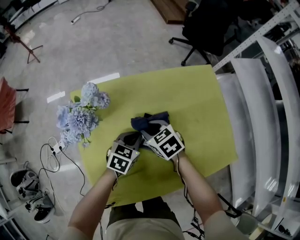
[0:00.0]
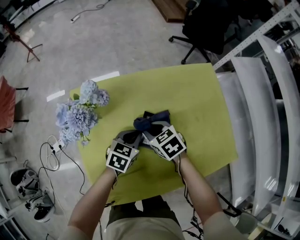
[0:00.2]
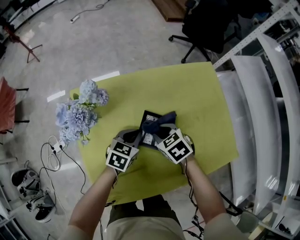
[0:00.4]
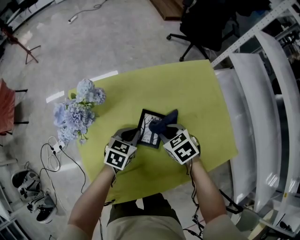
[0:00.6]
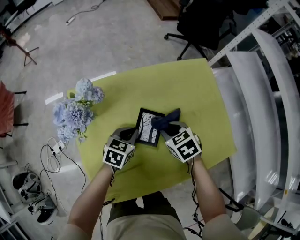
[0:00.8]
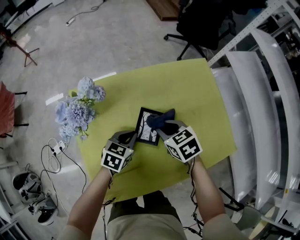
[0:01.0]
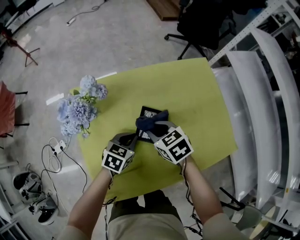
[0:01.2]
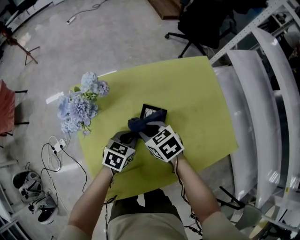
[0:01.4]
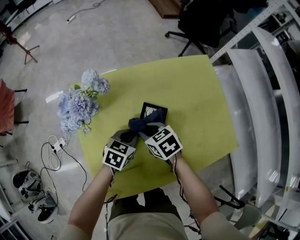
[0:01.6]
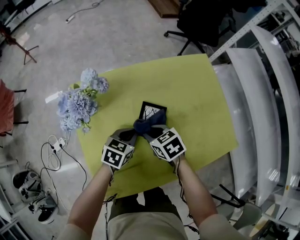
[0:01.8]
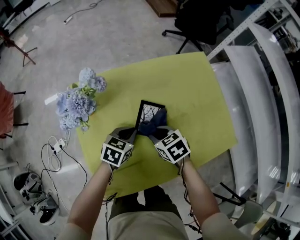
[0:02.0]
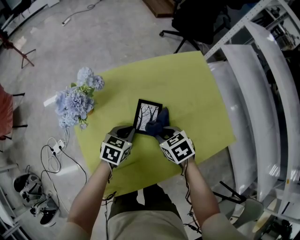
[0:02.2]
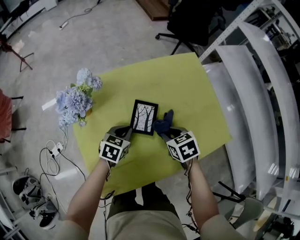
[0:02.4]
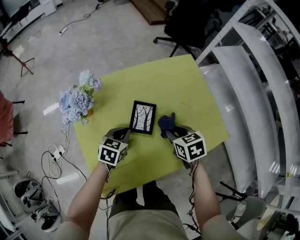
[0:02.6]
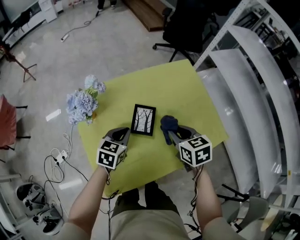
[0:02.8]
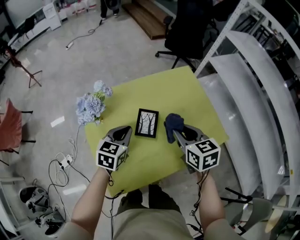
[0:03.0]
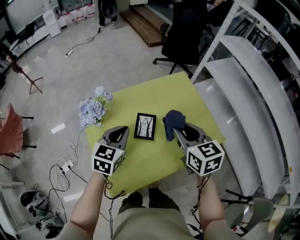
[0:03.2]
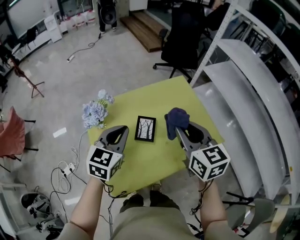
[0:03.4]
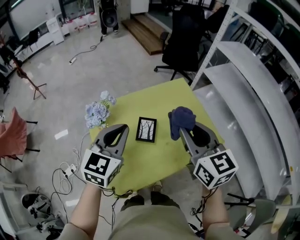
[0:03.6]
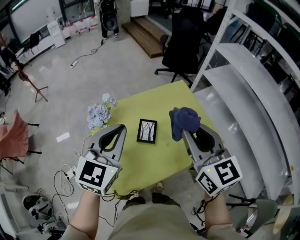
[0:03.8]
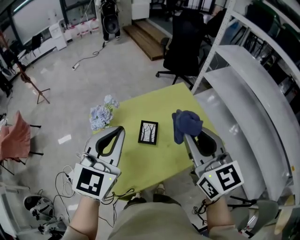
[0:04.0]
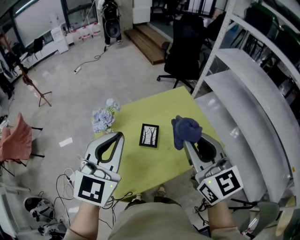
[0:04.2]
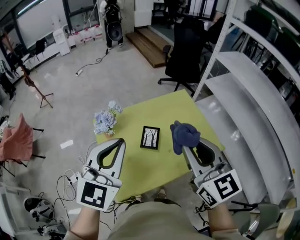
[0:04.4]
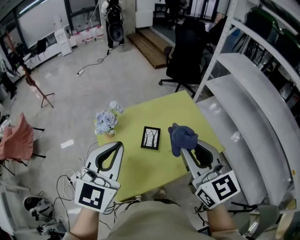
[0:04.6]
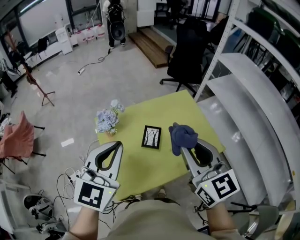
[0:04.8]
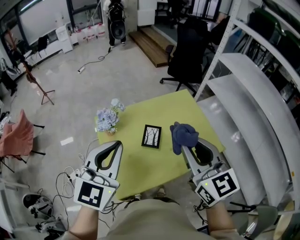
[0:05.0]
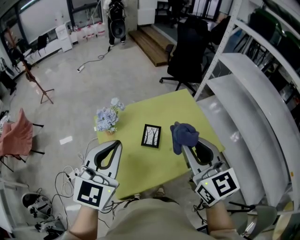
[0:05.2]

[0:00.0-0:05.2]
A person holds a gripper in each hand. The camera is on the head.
0:00.0 to 0:01.8: The right gripper is displaced backward by roughly 5 cm, and reaches approximately 10 cm to the right, then returns.
0:01.8 to 0:03.4: Both grippers travel together upward, about 30 cm. The left gripper rotates approximately 30 degrees, while the right gripper tips its fingers upward by roughly 30 degrees.
0:03.4 to 0:05.2: Both grippers travel together upward and backward, some 15 cm.

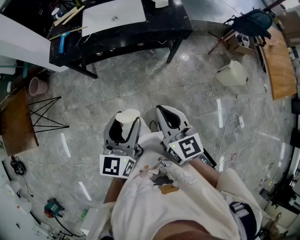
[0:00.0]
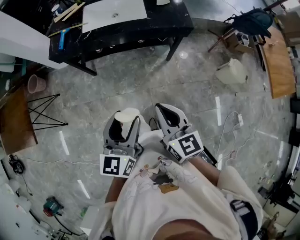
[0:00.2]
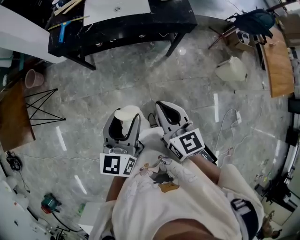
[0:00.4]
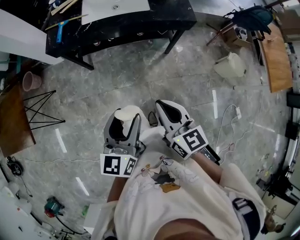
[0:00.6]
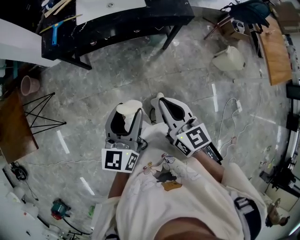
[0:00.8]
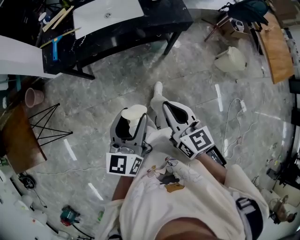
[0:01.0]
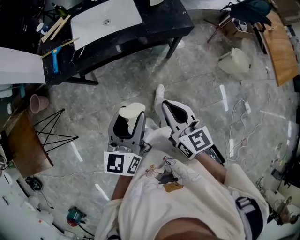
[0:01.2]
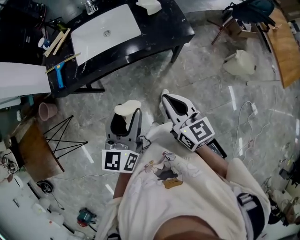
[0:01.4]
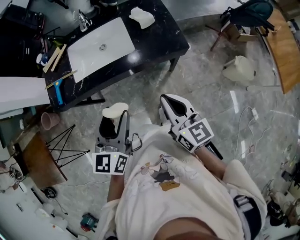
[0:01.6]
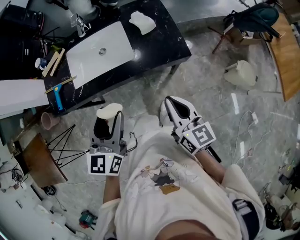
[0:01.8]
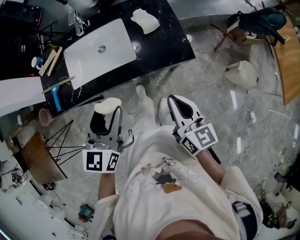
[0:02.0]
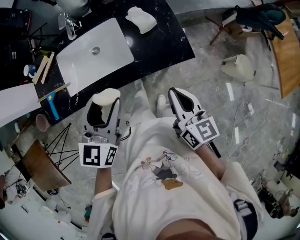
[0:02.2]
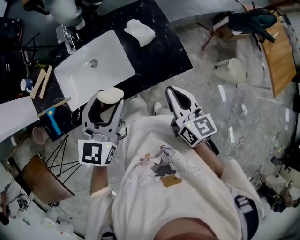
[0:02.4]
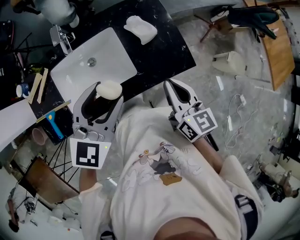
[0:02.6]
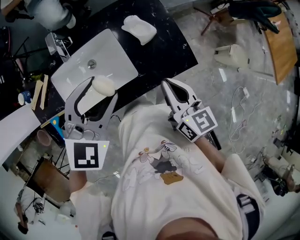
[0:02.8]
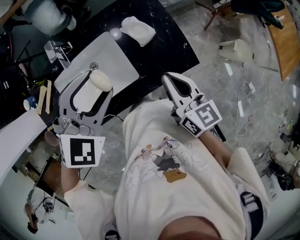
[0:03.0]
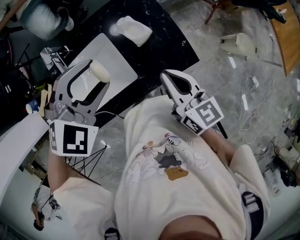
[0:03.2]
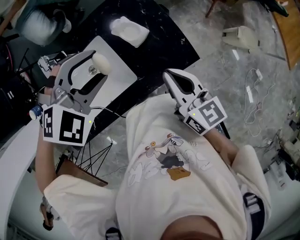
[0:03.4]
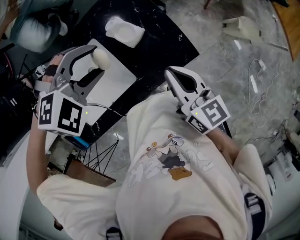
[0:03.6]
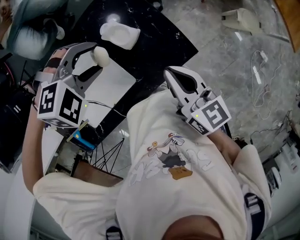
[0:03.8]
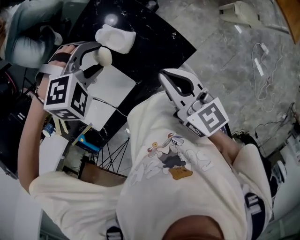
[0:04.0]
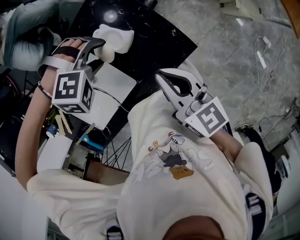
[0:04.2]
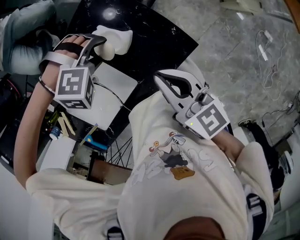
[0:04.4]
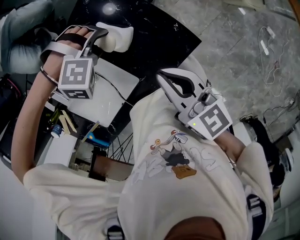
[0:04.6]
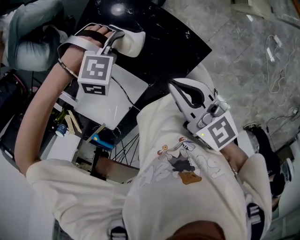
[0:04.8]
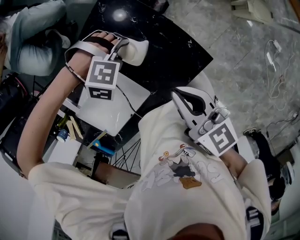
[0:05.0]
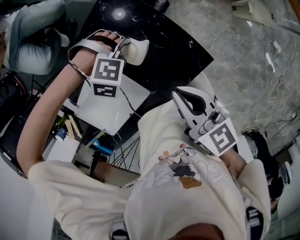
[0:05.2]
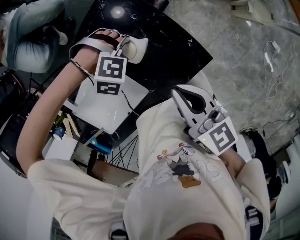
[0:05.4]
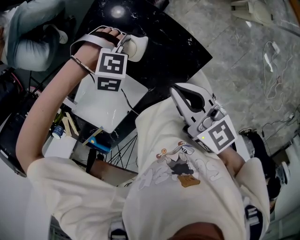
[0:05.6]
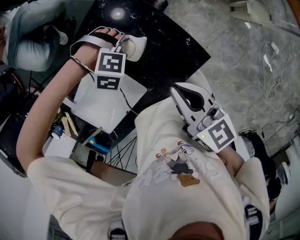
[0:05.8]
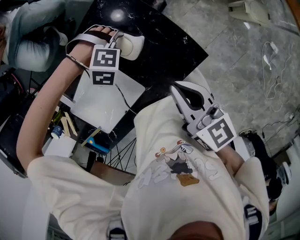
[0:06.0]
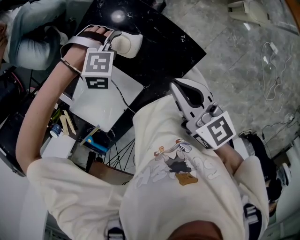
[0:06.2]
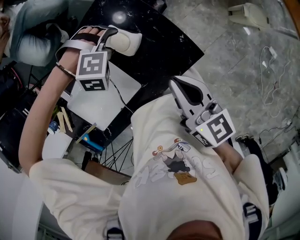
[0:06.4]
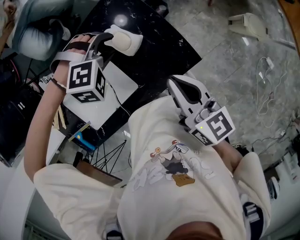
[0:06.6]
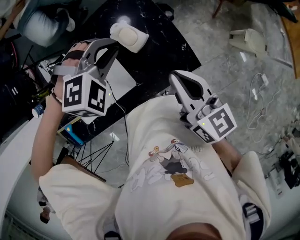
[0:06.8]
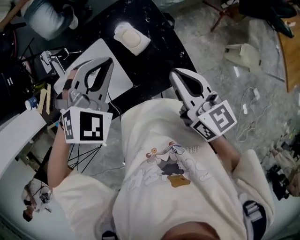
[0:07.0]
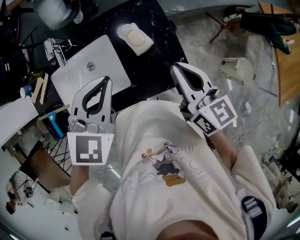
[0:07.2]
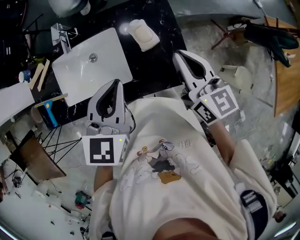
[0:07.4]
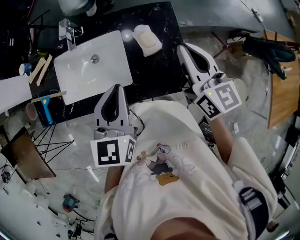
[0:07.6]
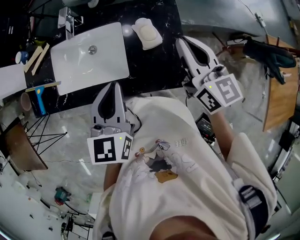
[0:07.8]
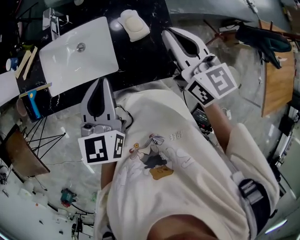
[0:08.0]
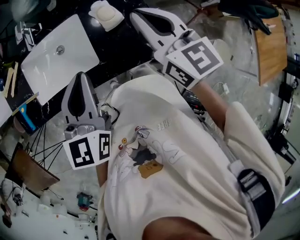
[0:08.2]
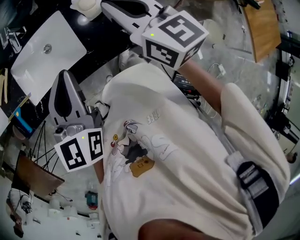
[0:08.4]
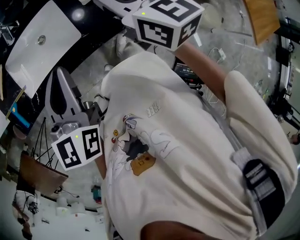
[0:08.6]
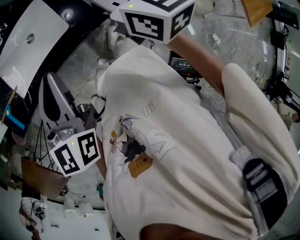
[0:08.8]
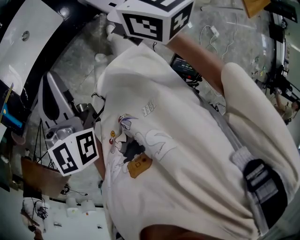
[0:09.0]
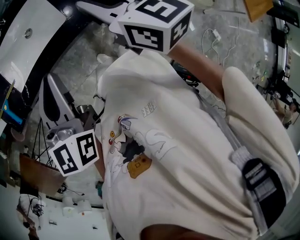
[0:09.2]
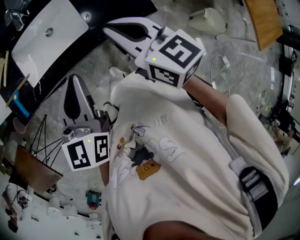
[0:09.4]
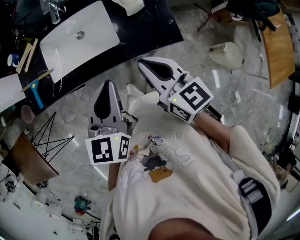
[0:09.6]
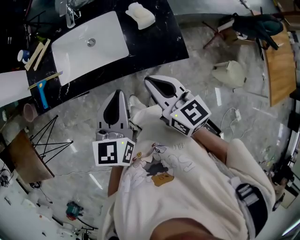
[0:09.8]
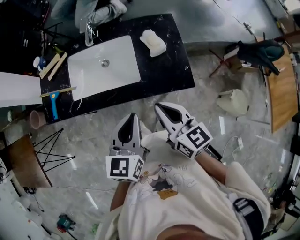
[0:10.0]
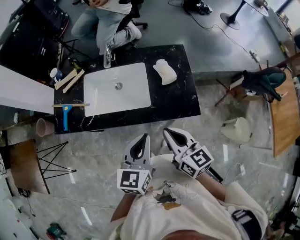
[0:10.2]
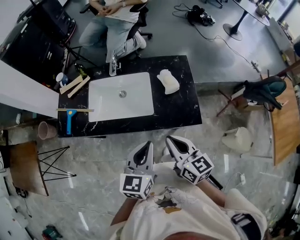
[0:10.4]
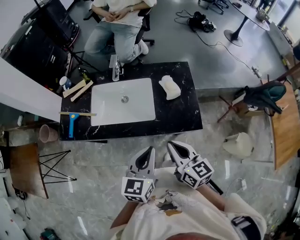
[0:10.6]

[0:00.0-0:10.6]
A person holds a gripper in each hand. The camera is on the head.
0:00.0 to 0:01.6: The grippers both shift forward by roughly 25 cm.
0:01.6 to 0:03.0: The grippers both shift forward by approximately 35 cm. The left gripper turns by roughly 60 degrees.
0:03.0 to 0:04.6: The left gripper shifts some 25 cm downward, and tilts its fingers approximately 50 degrees downward. Meanwhile the right gripper ends up some 10 cm from where it was.
0:04.6 to 0:06.0: The left gripper travels downward by roughly 5 cm.
0:06.0 to 0:07.6: The right gripper moves upward, roughly 10 cm, and turns by roughly 40 degrees, while the left gripper goes roughly 25 cm upward, rolls counterclockwise, seen from behind, by some 120 degrees, and closes its fingers.
0:07.6 to 0:09.0: Both grippers travel together backward, about 20 cm.
0:09.0 to 0:10.6: The right gripper moves to the left and backward, some 10 cm.

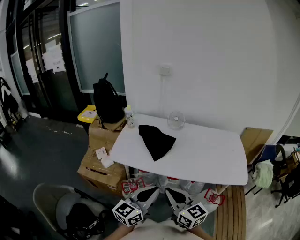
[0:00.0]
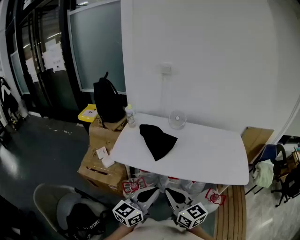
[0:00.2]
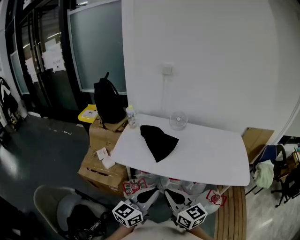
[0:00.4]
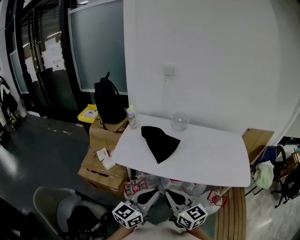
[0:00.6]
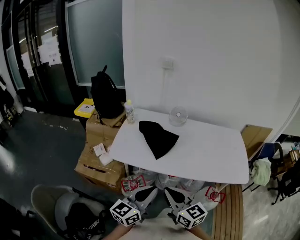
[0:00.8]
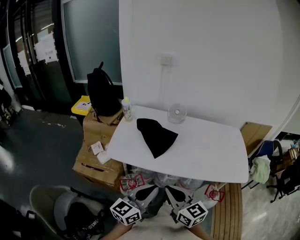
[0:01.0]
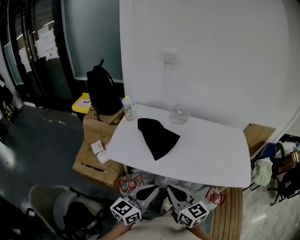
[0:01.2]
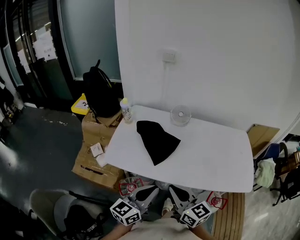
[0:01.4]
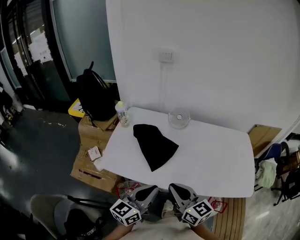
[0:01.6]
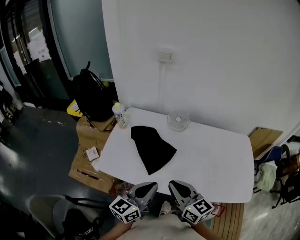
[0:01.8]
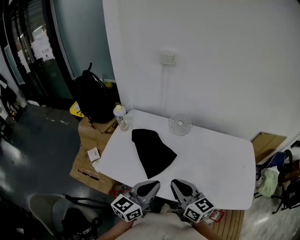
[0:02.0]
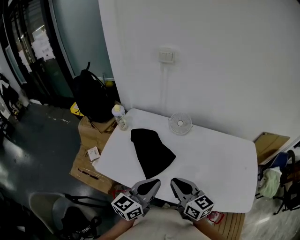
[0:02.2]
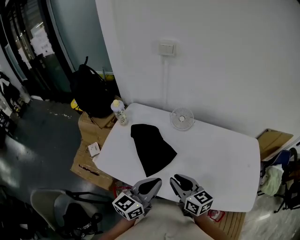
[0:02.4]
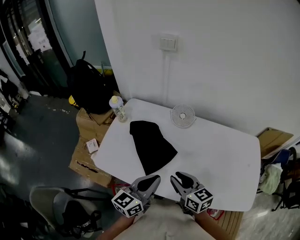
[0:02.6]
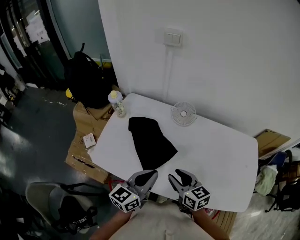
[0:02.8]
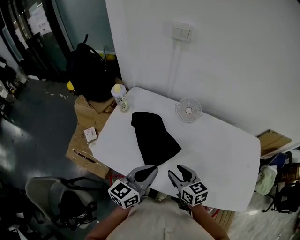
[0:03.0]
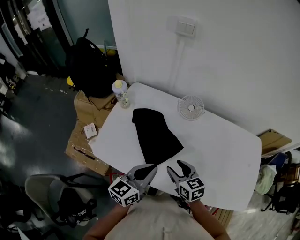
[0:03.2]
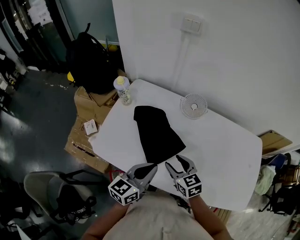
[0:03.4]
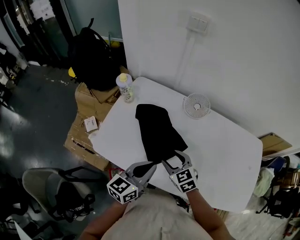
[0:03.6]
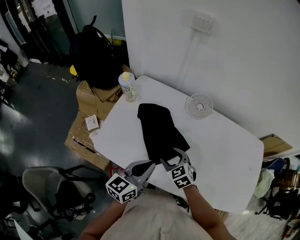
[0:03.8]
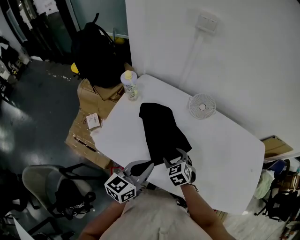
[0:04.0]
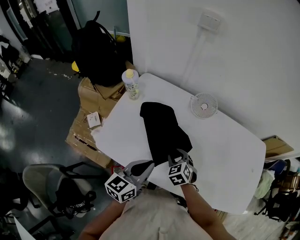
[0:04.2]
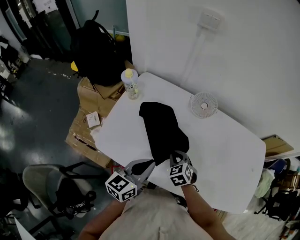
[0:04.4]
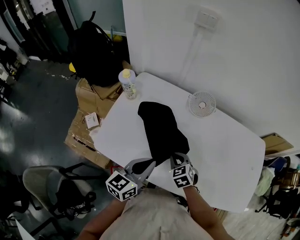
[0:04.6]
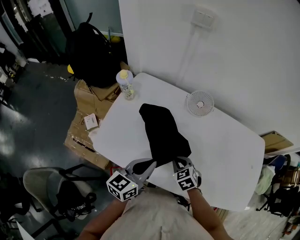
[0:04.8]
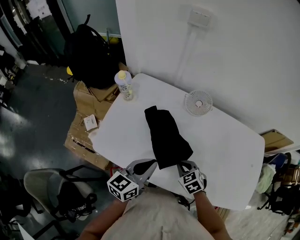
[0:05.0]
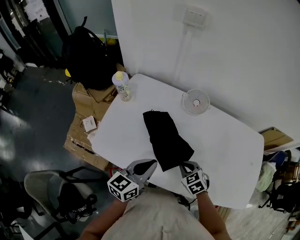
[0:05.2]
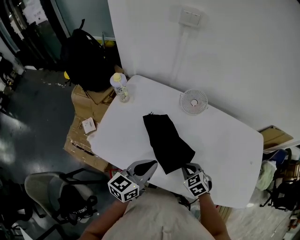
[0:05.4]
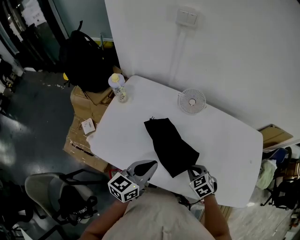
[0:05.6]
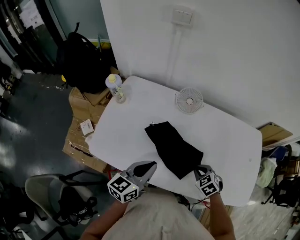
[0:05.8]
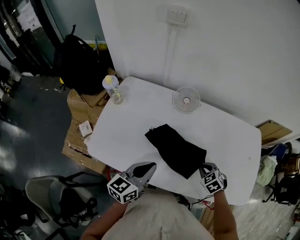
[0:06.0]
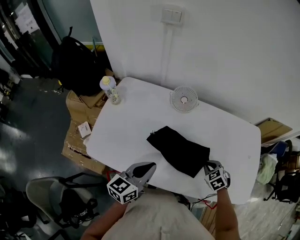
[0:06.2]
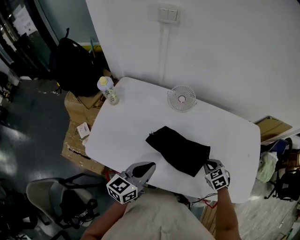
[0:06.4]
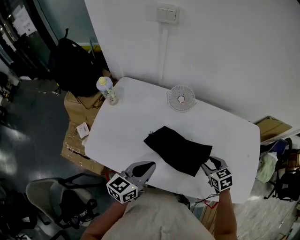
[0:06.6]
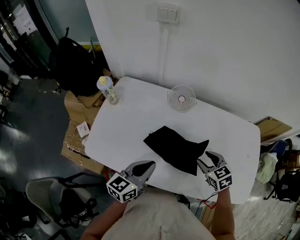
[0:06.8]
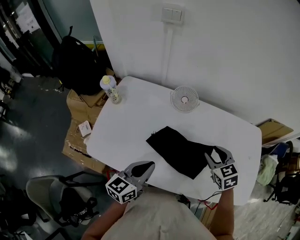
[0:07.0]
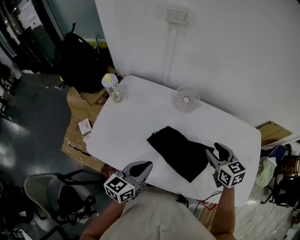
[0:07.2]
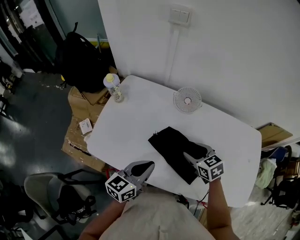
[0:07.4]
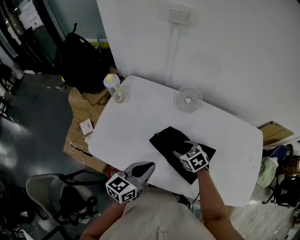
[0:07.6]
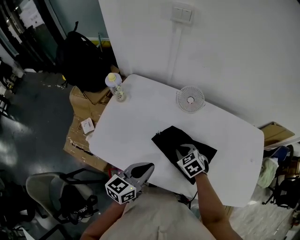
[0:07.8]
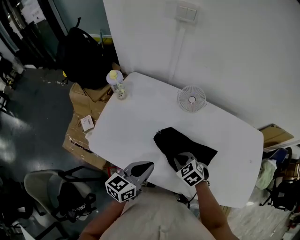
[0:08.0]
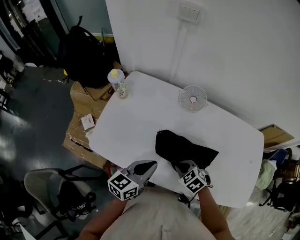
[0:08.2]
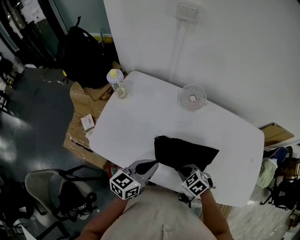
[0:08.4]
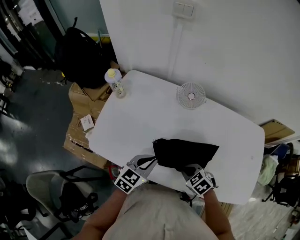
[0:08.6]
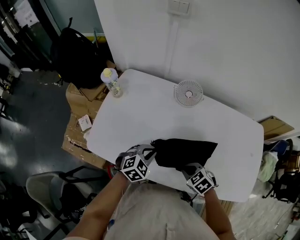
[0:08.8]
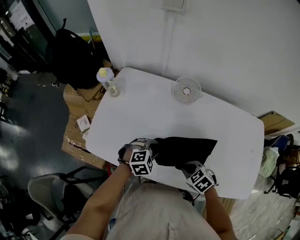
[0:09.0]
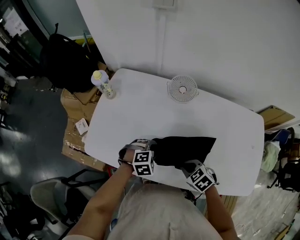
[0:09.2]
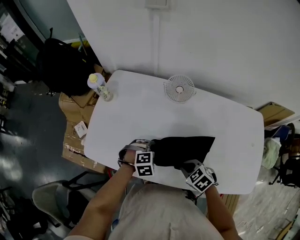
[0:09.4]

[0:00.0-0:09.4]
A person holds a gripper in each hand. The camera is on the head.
0:00.0 to 0:01.6: Both grippers travel together forward, approximately 20 cm.
0:01.6 to 0:03.2: The left gripper moves forward, some 15 cm. Meanwhile the right gripper heads forward and downward, covering approximately 20 cm, turns by roughly 30 degrees, and opens.
0:03.2 to 0:04.8: The left gripper shifts by approximately 5 cm, while the right gripper travels downward by about 10 cm, changes its angle by approximately 30 degrees, and closes up.
0:04.8 to 0:06.2: The left gripper moves to the right, roughly 5 cm; the right gripper moves to the right, some 25 cm.
0:06.2 to 0:07.8: The right gripper goes roughly 20 cm to the left, and opens, then closes once more.
0:07.8 to 0:09.4: The right gripper travels backward by approximately 10 cm. The left gripper is displaced downward by some 15 cm, tilts its fingers about 50 degrees downward, and opens.
